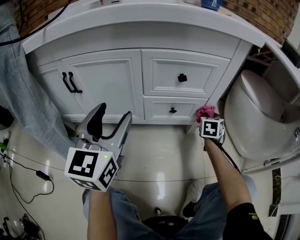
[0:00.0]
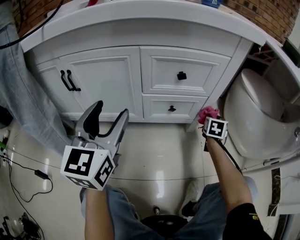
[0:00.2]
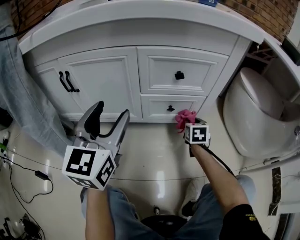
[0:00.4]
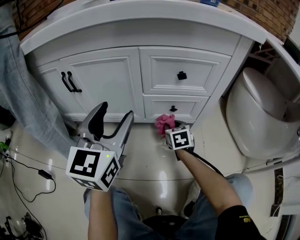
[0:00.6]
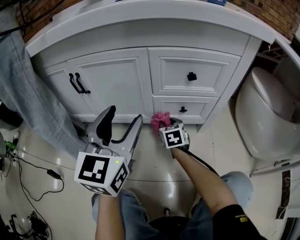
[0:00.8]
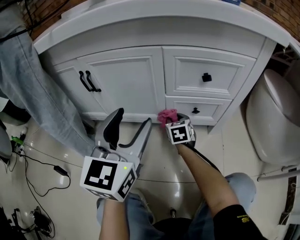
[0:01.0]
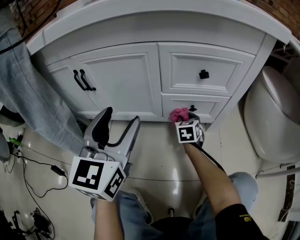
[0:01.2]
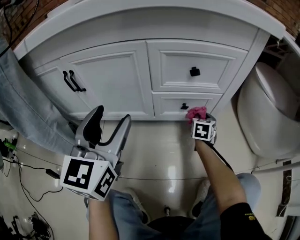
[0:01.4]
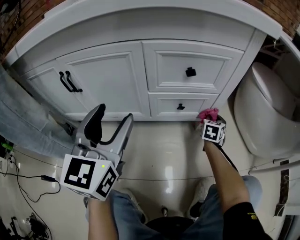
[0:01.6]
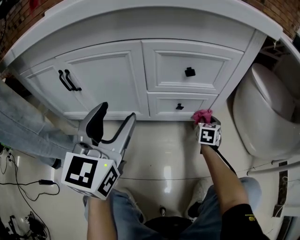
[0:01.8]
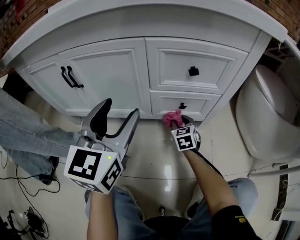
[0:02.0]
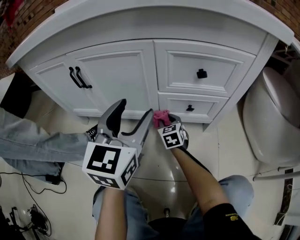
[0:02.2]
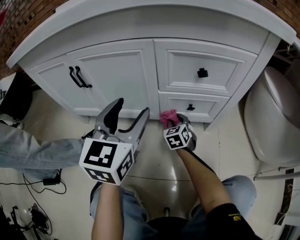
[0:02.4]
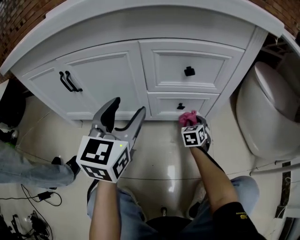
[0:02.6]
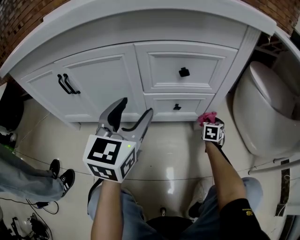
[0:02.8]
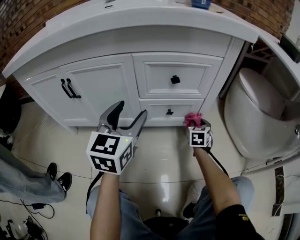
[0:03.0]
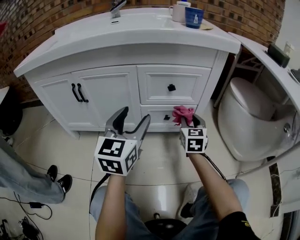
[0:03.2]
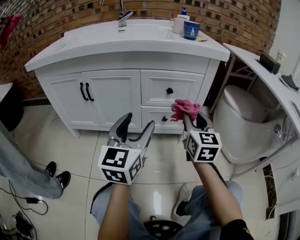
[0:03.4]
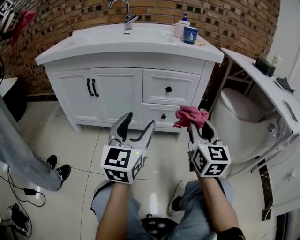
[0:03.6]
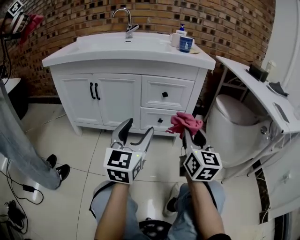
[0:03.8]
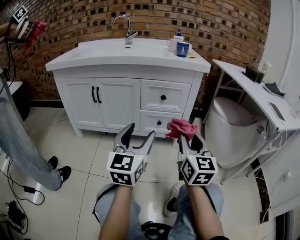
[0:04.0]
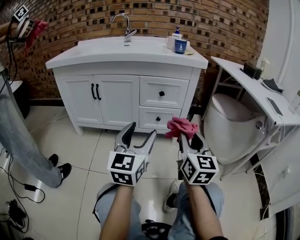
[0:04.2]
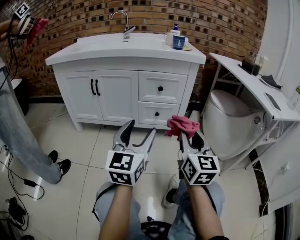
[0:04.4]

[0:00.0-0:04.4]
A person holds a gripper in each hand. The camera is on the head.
0:00.0 to 0:01.4: The right gripper travels downward by roughly 10 cm, and goes to the left and returns, approximately 30 cm each way.
0:01.4 to 0:03.0: The left gripper changes place by roughly 10 cm.
0:03.0 to 0:04.4: The right gripper is displaced backward and upward by some 50 cm, and angles its fingers upward, by some 40 degrees; the left gripper shifts some 25 cm backward.

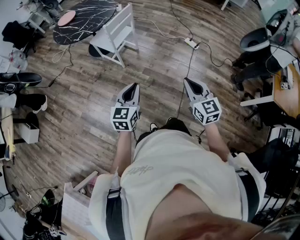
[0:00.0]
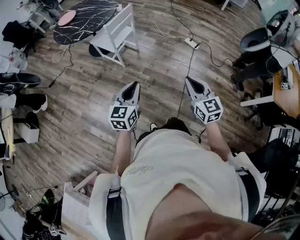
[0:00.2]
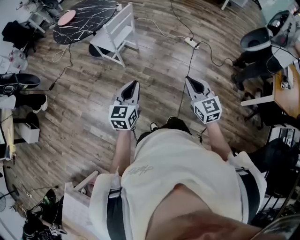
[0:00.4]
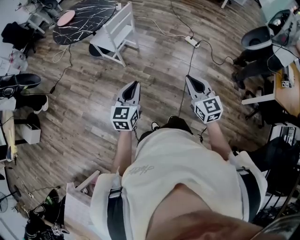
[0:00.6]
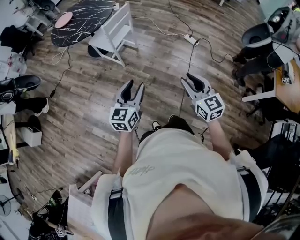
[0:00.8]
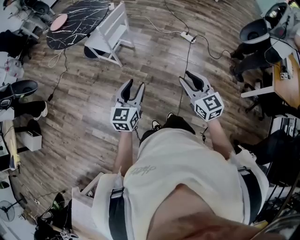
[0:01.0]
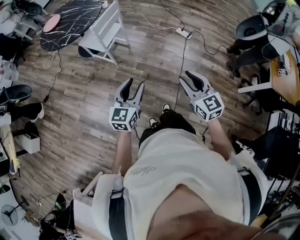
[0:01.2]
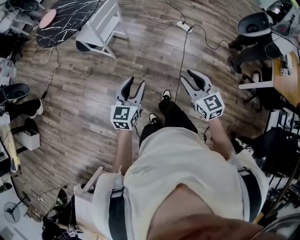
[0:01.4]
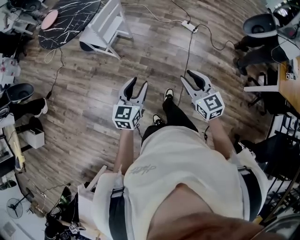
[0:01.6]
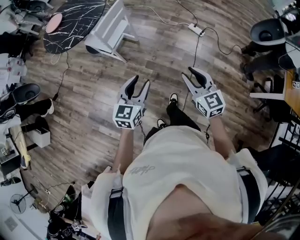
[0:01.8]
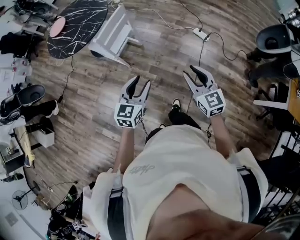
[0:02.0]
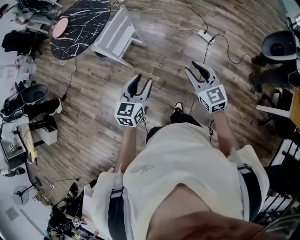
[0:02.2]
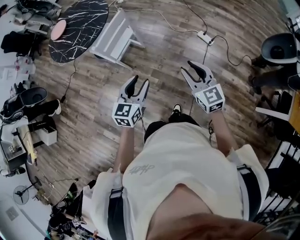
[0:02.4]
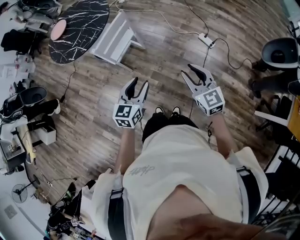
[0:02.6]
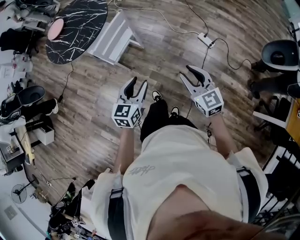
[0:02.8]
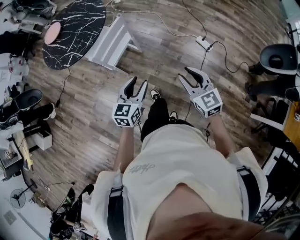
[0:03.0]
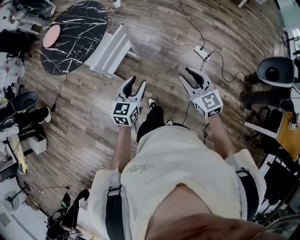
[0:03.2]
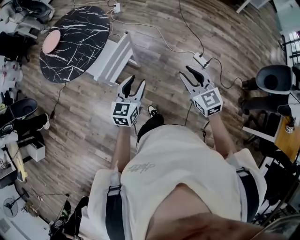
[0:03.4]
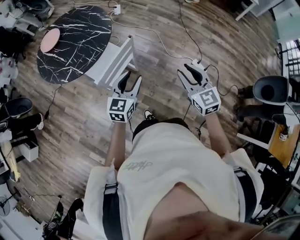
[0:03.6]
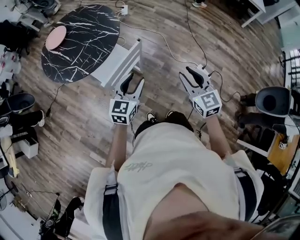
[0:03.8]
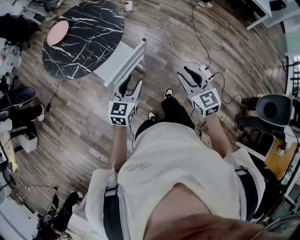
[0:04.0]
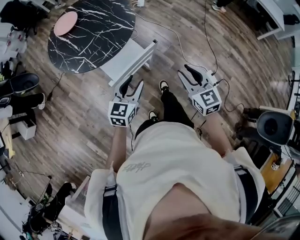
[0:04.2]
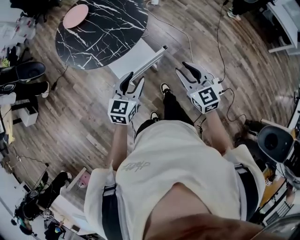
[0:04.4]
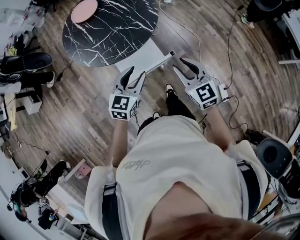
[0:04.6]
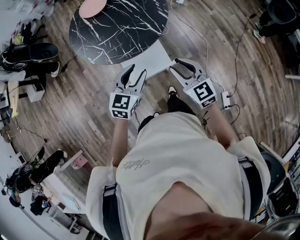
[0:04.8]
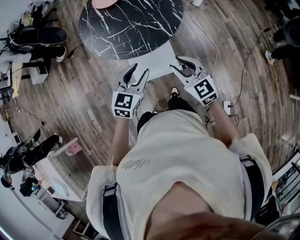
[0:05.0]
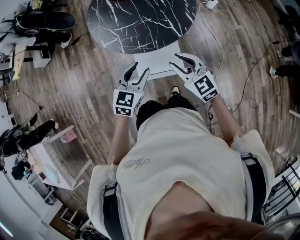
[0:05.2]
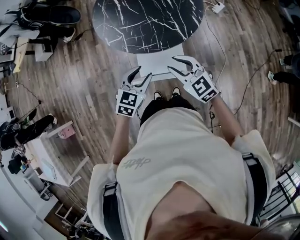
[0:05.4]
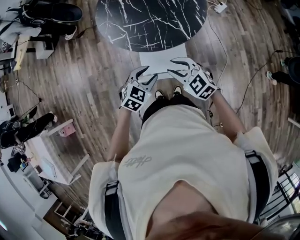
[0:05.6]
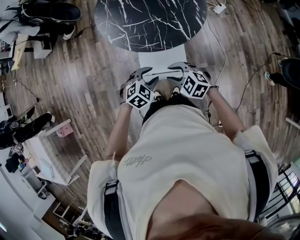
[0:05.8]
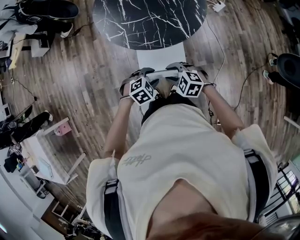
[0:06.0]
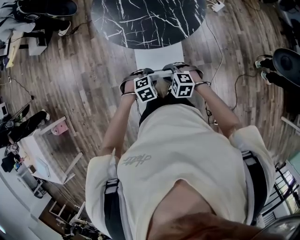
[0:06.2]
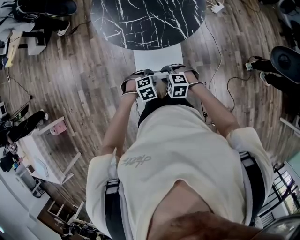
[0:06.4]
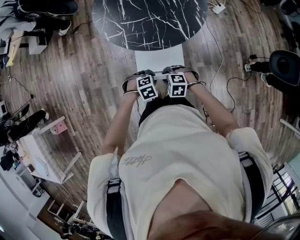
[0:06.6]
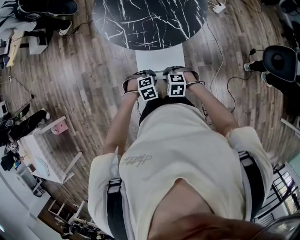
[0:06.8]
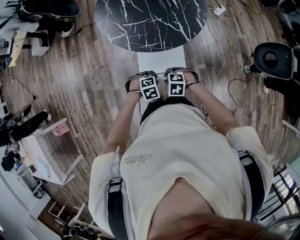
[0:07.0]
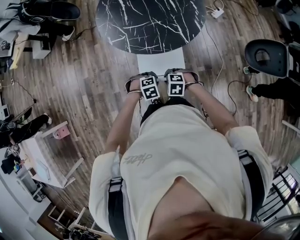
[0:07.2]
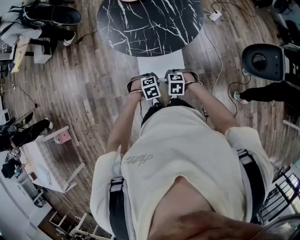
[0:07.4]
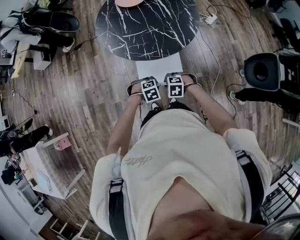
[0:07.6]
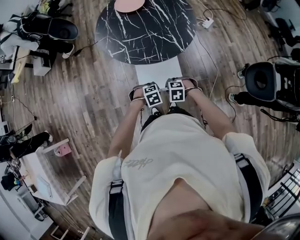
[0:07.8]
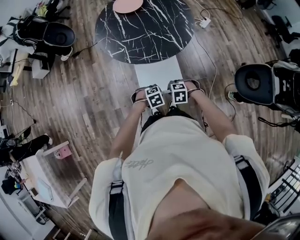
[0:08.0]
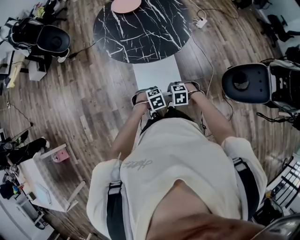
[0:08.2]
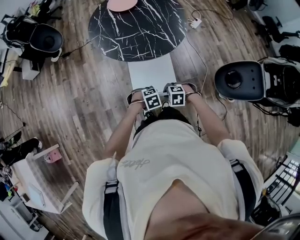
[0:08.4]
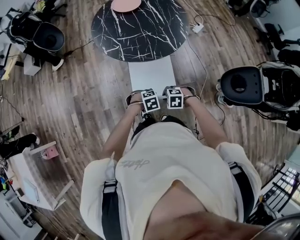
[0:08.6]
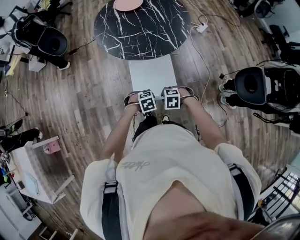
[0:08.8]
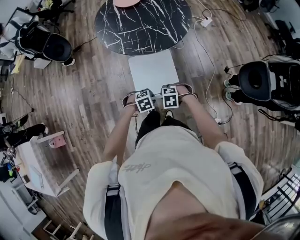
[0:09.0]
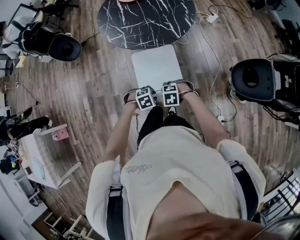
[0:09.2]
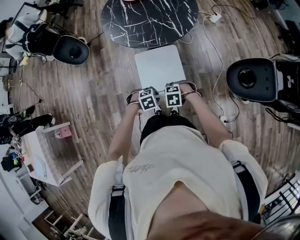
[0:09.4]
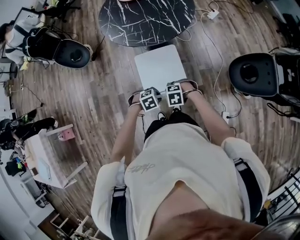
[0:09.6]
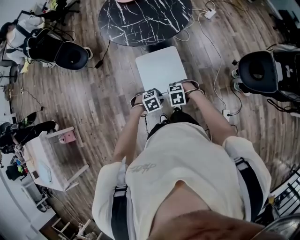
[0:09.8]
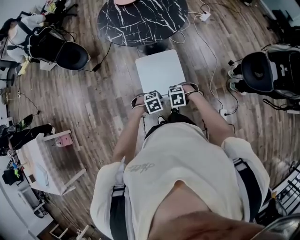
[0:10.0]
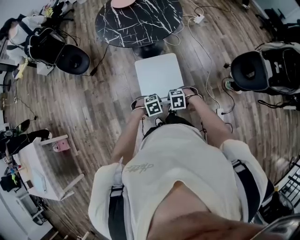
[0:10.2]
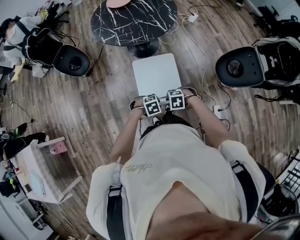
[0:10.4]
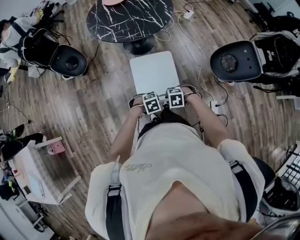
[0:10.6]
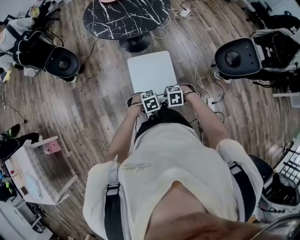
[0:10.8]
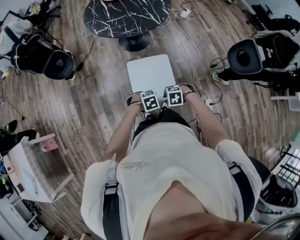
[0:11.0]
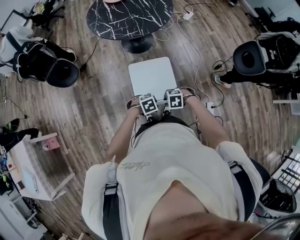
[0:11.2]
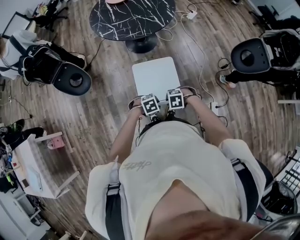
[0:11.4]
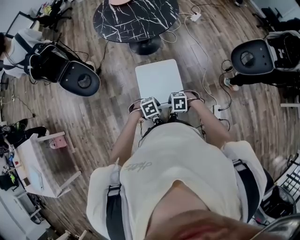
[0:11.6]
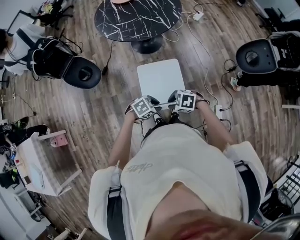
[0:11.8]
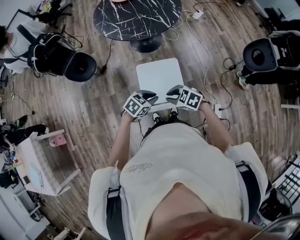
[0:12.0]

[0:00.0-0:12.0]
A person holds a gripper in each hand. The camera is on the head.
0:00.0 to 0:01.6: The two grippers go roughly 10 cm forward. The left gripper opens. Meanwhile the right gripper opens.
0:01.6 to 0:03.0: Both grippers travel together forward, approximately 30 cm.
0:03.0 to 0:04.4: Both grippers move forward and to the left, some 35 cm.
0:04.4 to 0:06.0: The right gripper changes place by approximately 20 cm, and angles its fingers downward, by roughly 30 degrees; the left gripper shifts approximately 15 cm downward, and angles its fingers downward, by approximately 40 degrees.
0:06.0 to 0:07.6: Both grippers move downward, about 10 cm. The right gripper rotates roughly 20 degrees. The left gripper closes up.
0:07.6 to 0:09.0: The left gripper changes place by roughly 15 cm, while the right gripper shifts by some 15 cm.
0:09.0 to 0:10.4: The left gripper ends up approximately 15 cm from where it was. Meanwhile the right gripper ends up some 20 cm from where it was.
0:10.4 to 0:12.0: The two grippers go some 10 cm upward. The right gripper rotates about 30 degrees; the left gripper turns by approximately 40 degrees.

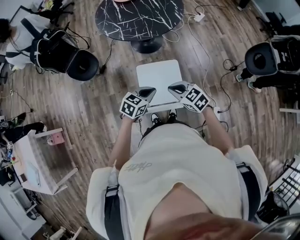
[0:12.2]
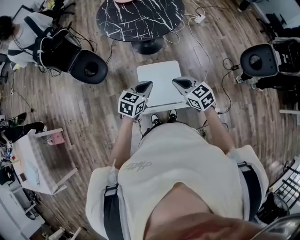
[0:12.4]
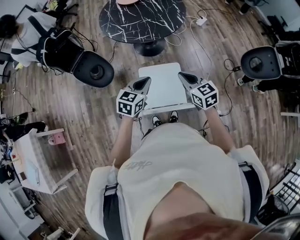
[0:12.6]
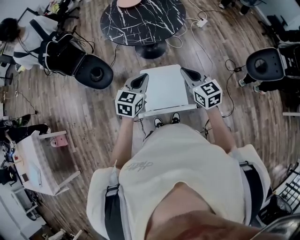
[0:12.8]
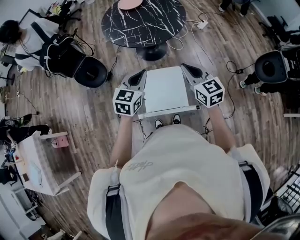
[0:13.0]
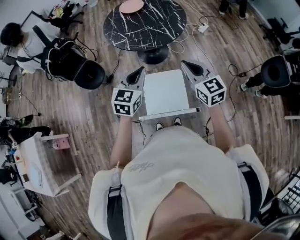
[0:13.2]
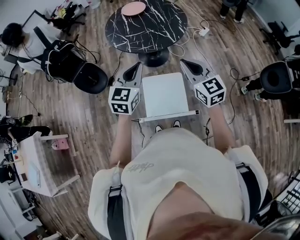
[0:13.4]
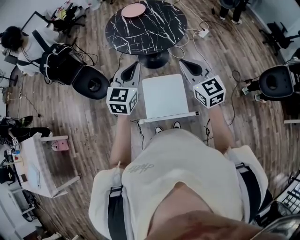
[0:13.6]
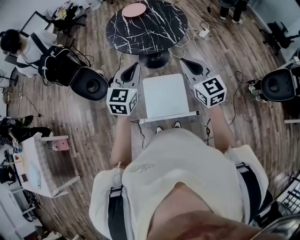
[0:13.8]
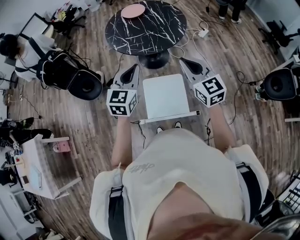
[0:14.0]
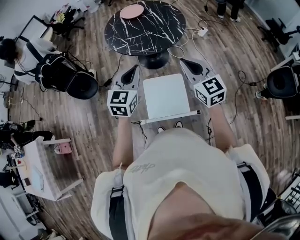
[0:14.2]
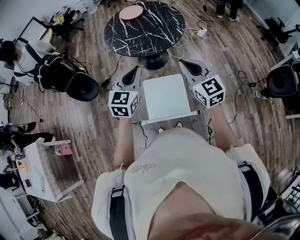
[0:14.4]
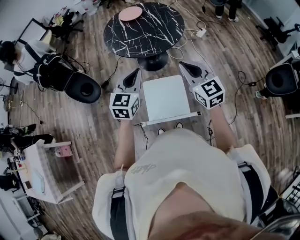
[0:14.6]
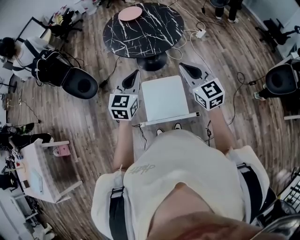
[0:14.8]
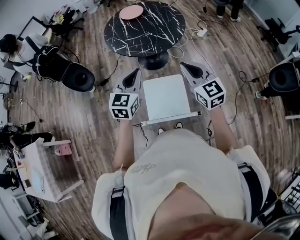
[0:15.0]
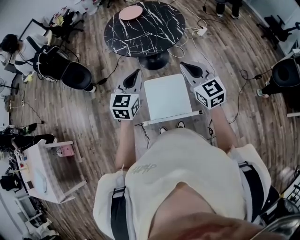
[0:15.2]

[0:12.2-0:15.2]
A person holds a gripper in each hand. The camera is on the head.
0:12.2 to 0:13.8: Both grippers move upward and forward, roughly 25 cm. The left gripper swivels approximately 40 degrees. Meanwhile the right gripper changes its angle by approximately 40 degrees.
0:13.8 to 0:15.2: The grippers stay close to where they were, moving slightly.

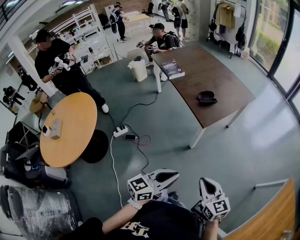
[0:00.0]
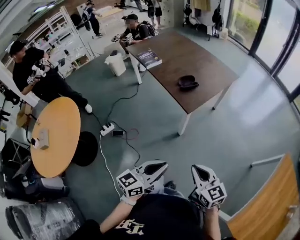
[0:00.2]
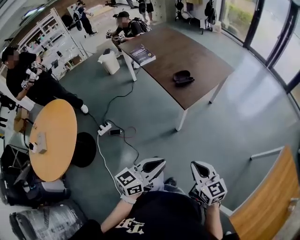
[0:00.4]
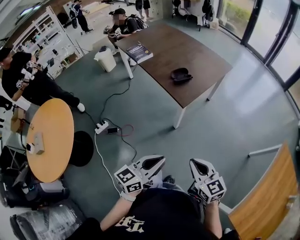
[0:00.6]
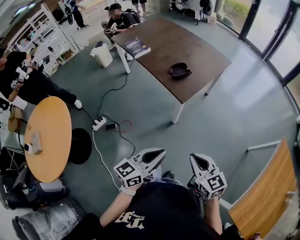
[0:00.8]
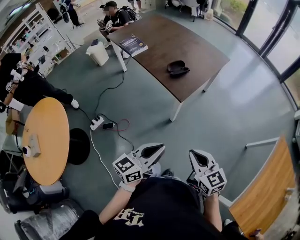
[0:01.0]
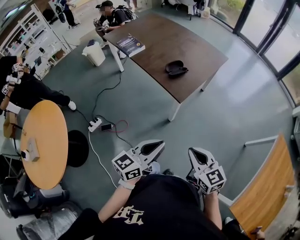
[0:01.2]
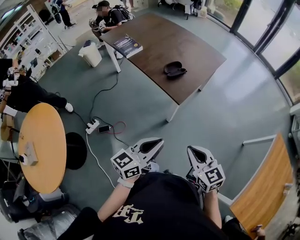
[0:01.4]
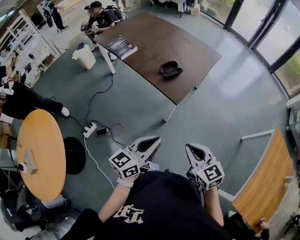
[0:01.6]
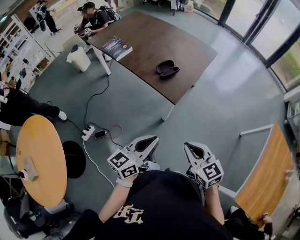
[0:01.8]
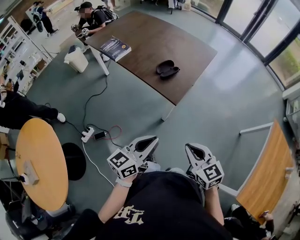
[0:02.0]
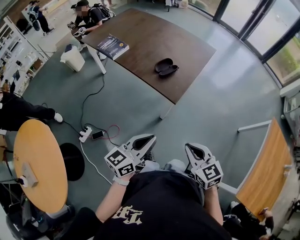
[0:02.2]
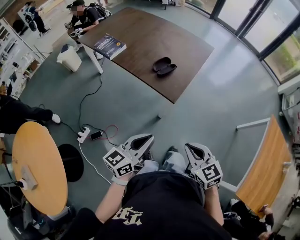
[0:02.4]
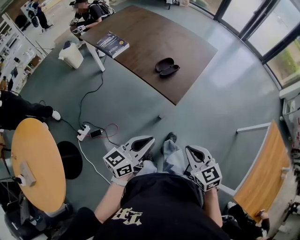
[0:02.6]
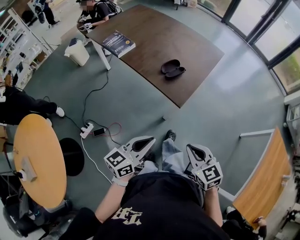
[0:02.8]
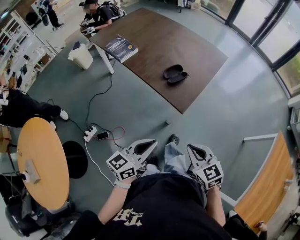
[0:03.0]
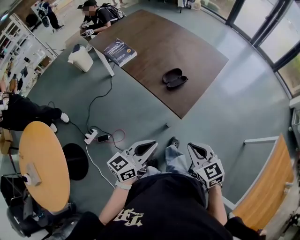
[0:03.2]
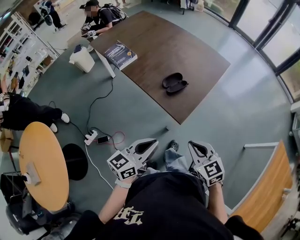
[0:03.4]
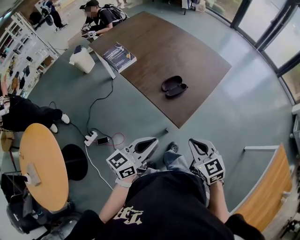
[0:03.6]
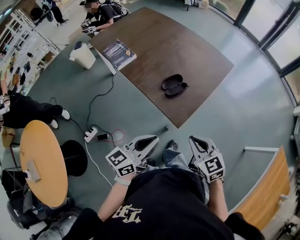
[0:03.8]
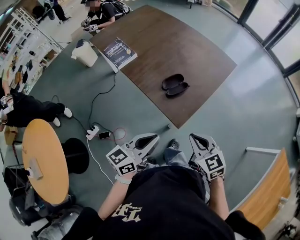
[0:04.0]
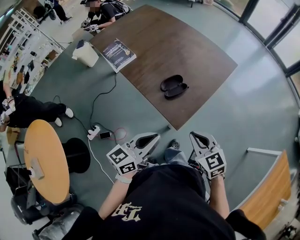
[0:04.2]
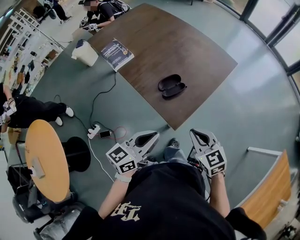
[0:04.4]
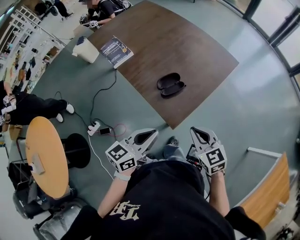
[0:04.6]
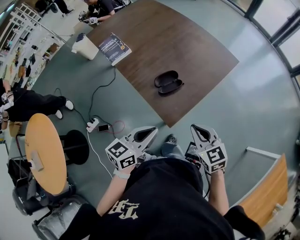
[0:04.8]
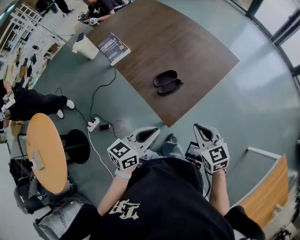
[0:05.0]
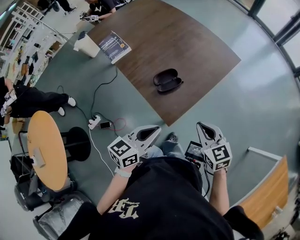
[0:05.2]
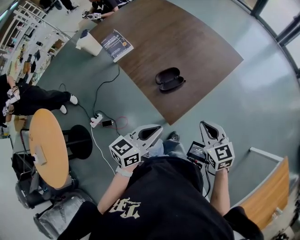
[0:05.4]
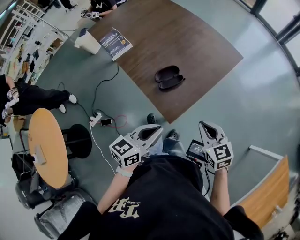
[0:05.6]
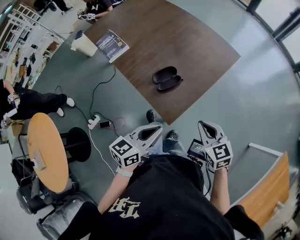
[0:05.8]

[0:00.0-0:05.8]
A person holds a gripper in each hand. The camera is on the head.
0:00.0 to 0:01.4: The grippers both shift forward and to the left by about 15 cm.
0:01.4 to 0:02.8: The left gripper shifts about 10 cm to the left and forward. The right gripper heads forward and to the left, covering some 10 cm.
0:02.8 to 0:04.4: The left gripper shifts some 20 cm forward and to the right, while the right gripper heads forward, covering approximately 25 cm.
0:04.4 to 0:05.8: Both grippers travel together to the right, about 5 cm.
